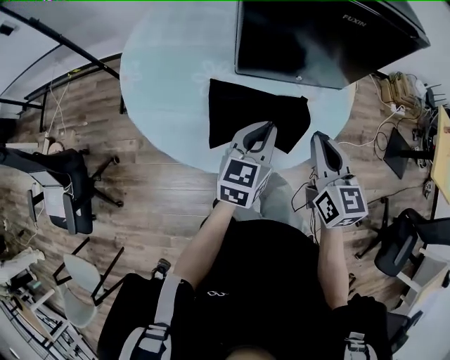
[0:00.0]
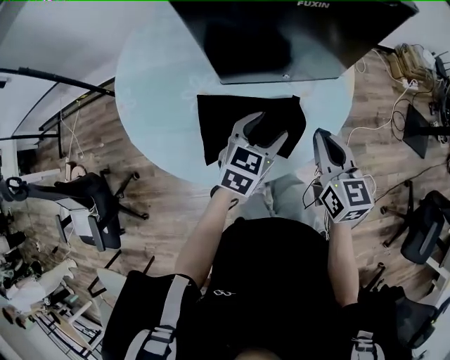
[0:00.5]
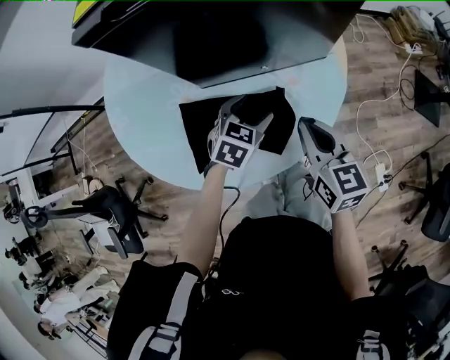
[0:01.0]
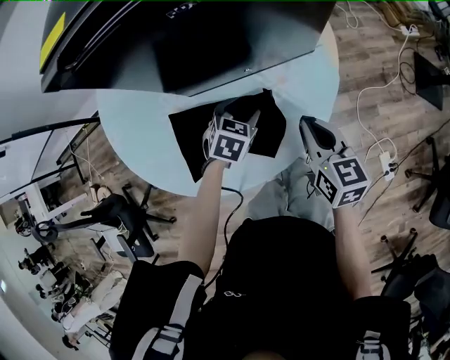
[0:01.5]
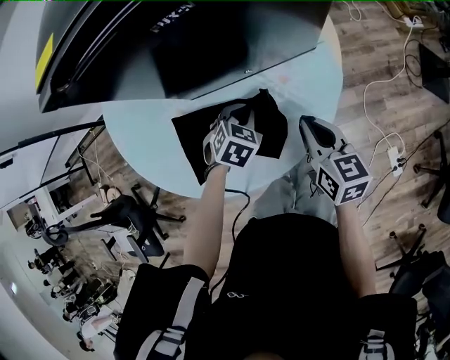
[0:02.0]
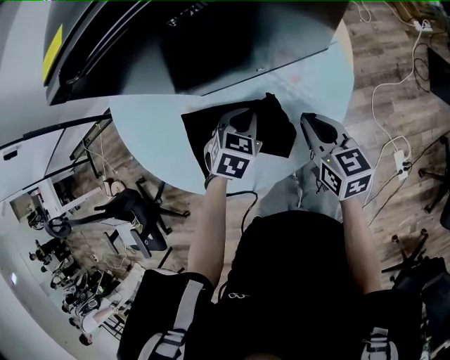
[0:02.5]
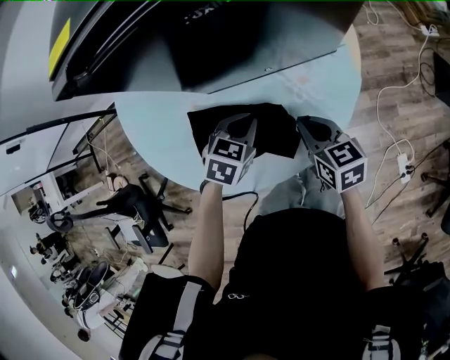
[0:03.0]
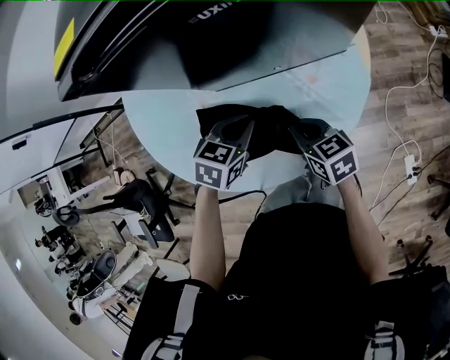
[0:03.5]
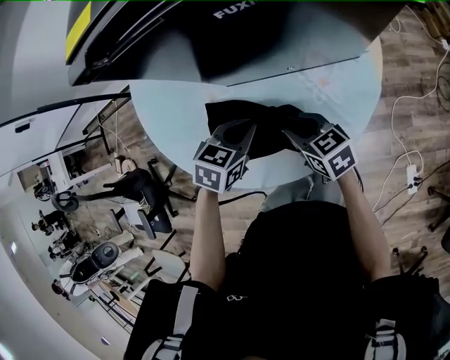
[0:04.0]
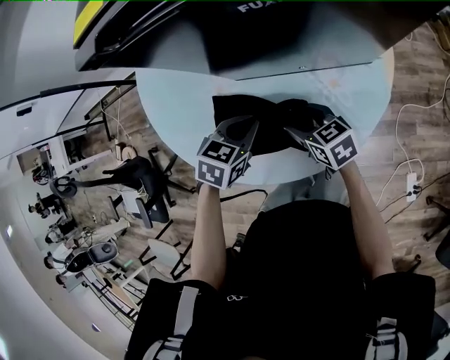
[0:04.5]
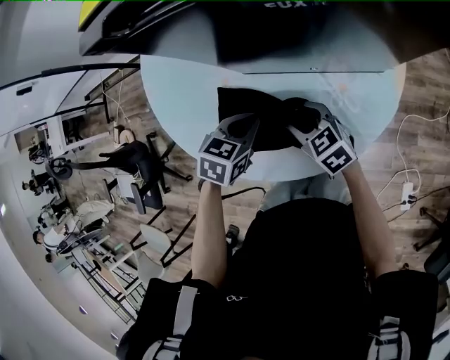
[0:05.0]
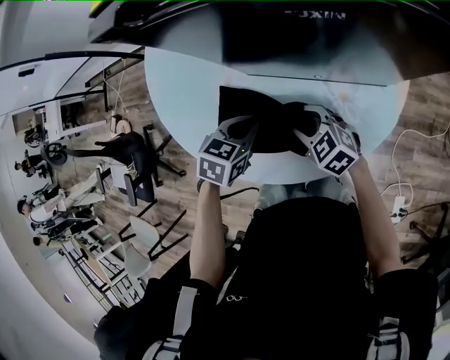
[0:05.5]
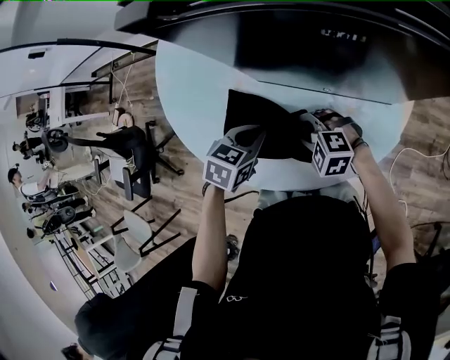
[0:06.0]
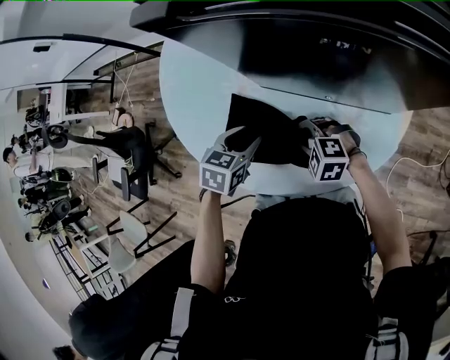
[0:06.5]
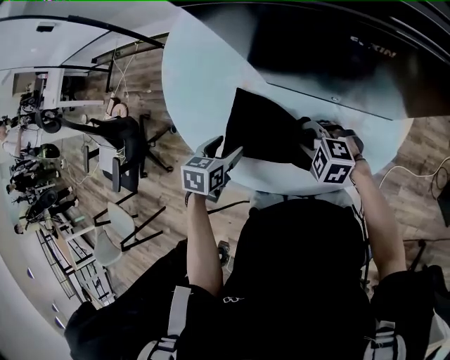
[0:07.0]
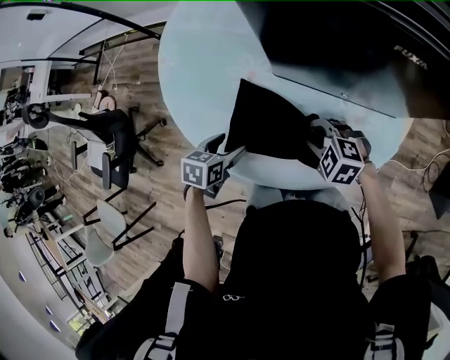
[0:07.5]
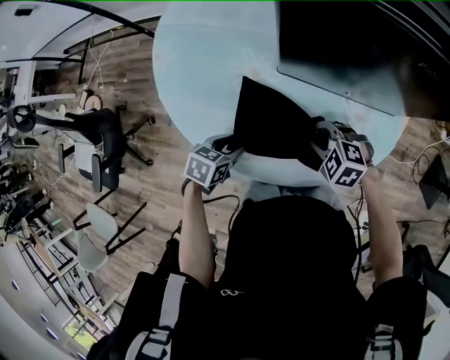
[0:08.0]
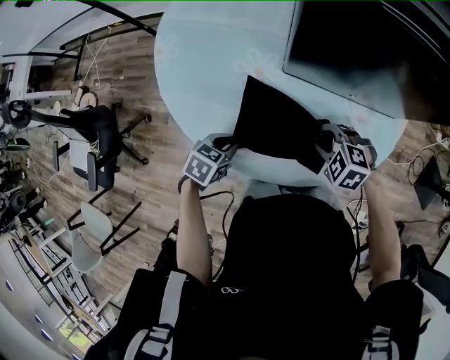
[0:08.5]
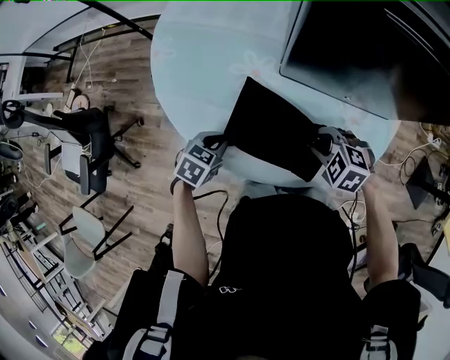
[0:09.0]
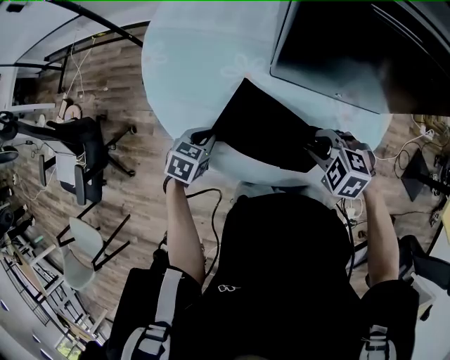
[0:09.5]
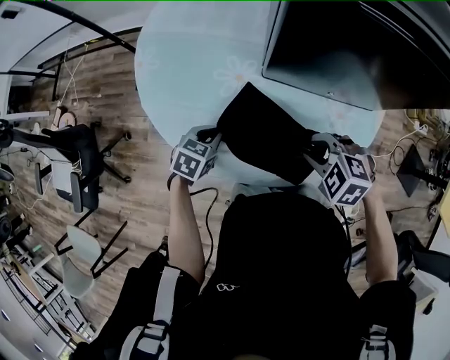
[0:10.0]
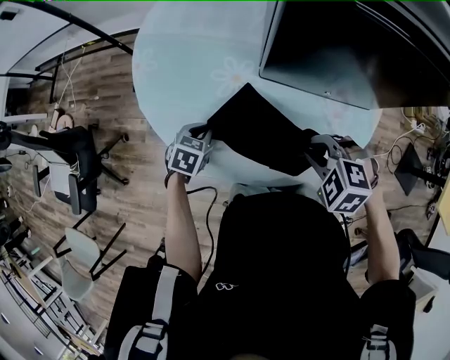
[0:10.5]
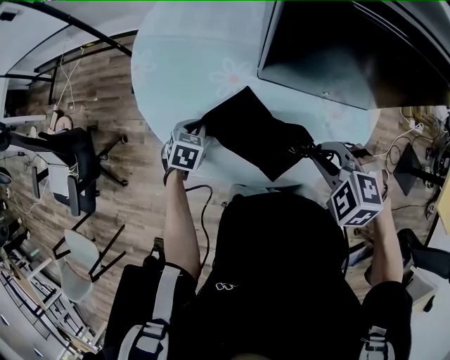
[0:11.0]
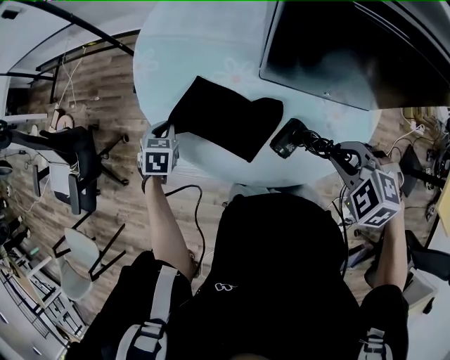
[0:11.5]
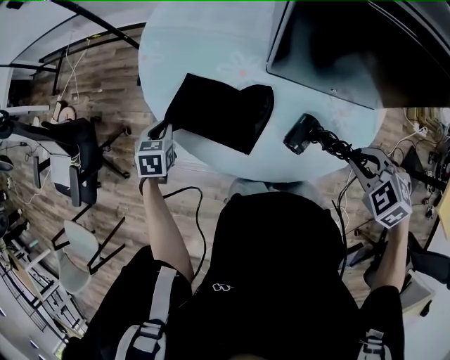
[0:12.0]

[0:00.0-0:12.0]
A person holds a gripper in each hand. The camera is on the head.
0:00.0 to 0:02.0: The left gripper goes about 20 cm downward and forward, angles its fingers downward, by some 40 degrees, and opens, then closes again. The right gripper travels downward, to the right and forward by some 20 cm, and rotates about 20 degrees.
0:02.0 to 0:04.0: The right gripper is displaced to the left and downward by some 15 cm, swivels about 30 degrees, and opens up. Meanwhile the left gripper goes some 10 cm to the left and upward, and rotates roughly 20 degrees.
0:04.0 to 0:06.0: The right gripper moves about 5 cm, rotates around the line of its fingers by approximately 70 degrees, counterclockwise from behind, and opens, then closes once more.
0:06.0 to 0:08.0: The left gripper heads to the left and downward, covering about 15 cm, and opens up.
0:08.0 to 0:10.0: The right gripper goes about 10 cm upward, while the left gripper goes approximately 5 cm forward, and closes its fingers.
0:10.0 to 0:12.0: The right gripper is displaced to the right and upward by about 10 cm. Meanwhile the left gripper shifts some 15 cm to the left, and changes its angle by roughly 30 degrees.

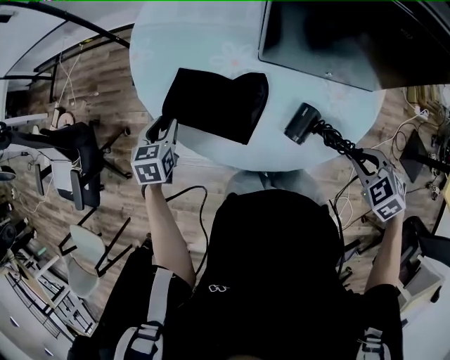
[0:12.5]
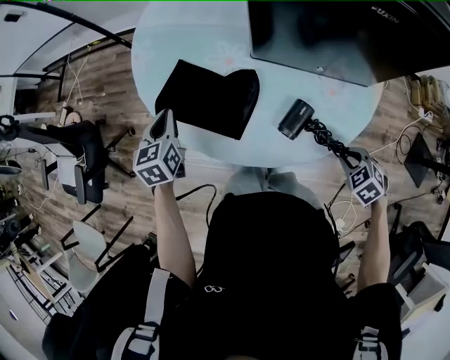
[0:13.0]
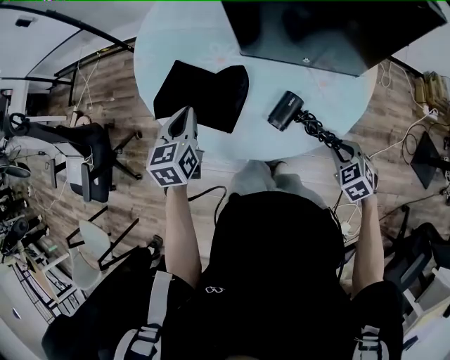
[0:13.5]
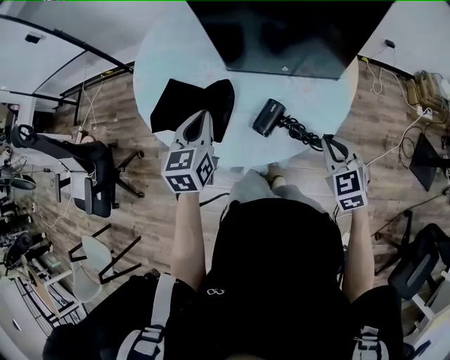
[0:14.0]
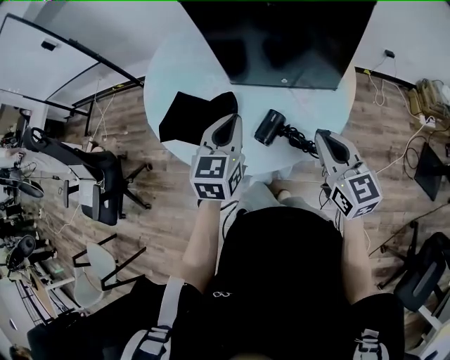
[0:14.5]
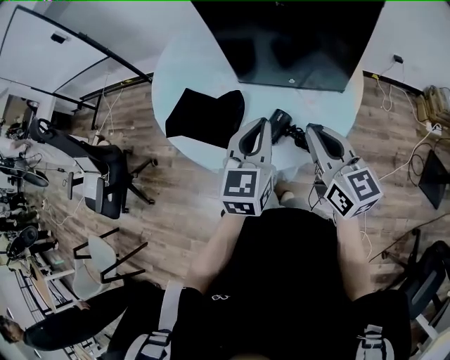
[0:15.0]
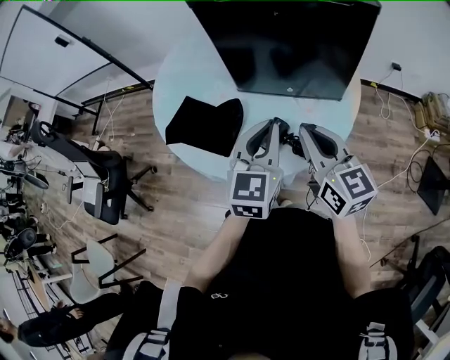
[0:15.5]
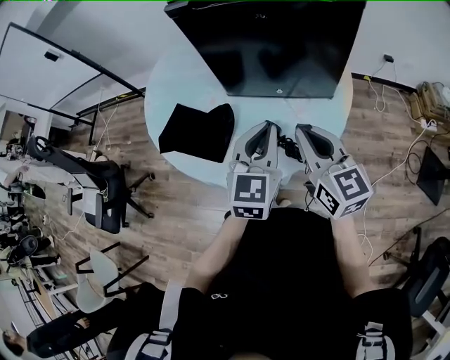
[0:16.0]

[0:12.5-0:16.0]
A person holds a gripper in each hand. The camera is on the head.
0:12.5 to 0:14.5: The left gripper is displaced to the right and upward by roughly 35 cm, swivels roughly 30 degrees, and closes up. The right gripper is displaced upward by approximately 10 cm, and tilts its fingers some 60 degrees upward.
0:14.5 to 0:16.0: The left gripper is displaced to the right by some 10 cm. Meanwhile the right gripper ends up roughly 5 cm from where it was.

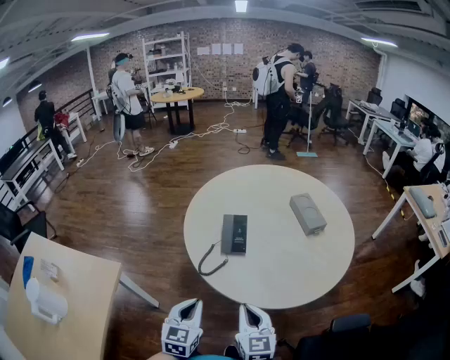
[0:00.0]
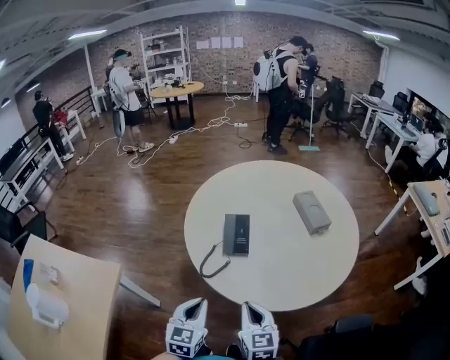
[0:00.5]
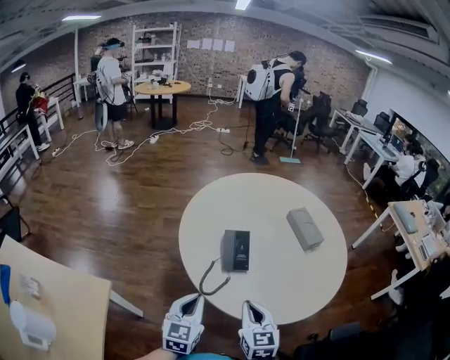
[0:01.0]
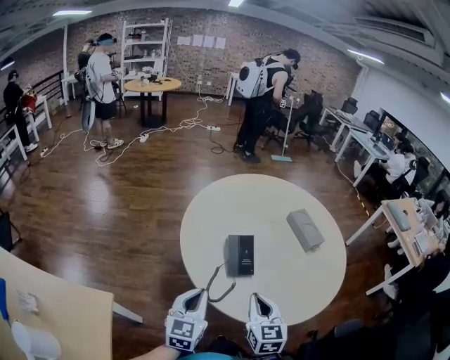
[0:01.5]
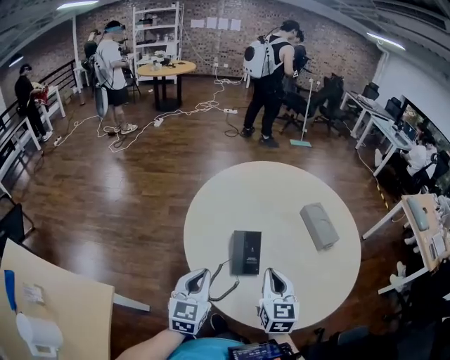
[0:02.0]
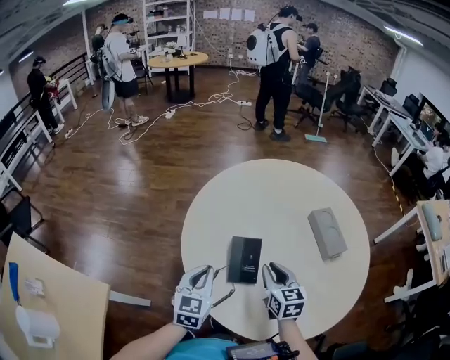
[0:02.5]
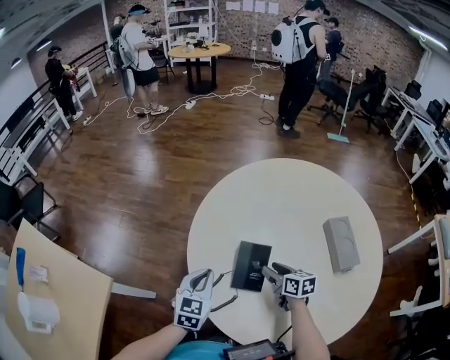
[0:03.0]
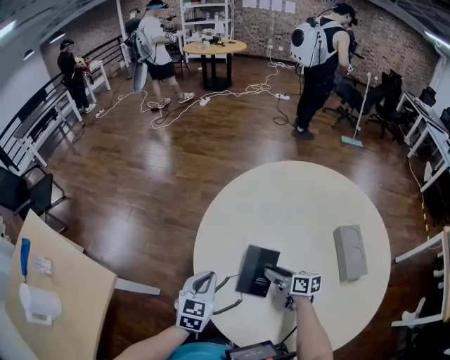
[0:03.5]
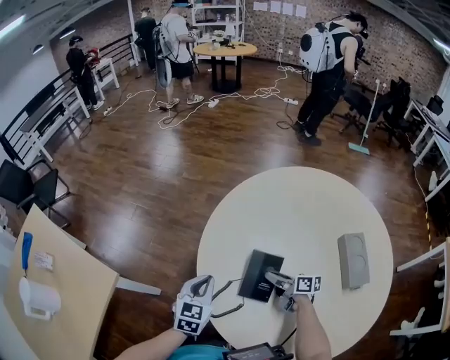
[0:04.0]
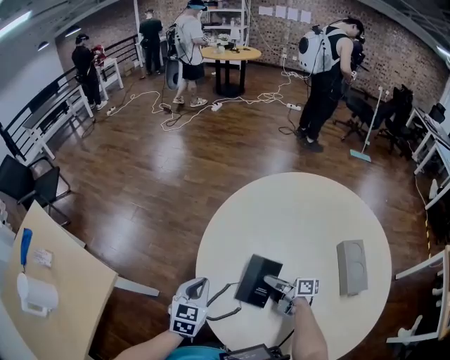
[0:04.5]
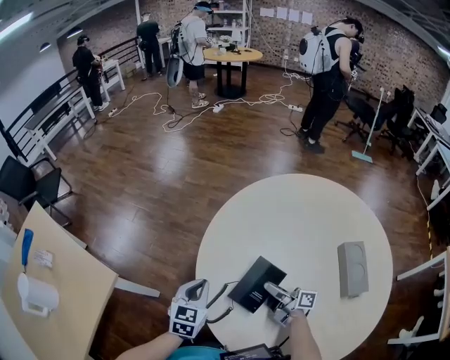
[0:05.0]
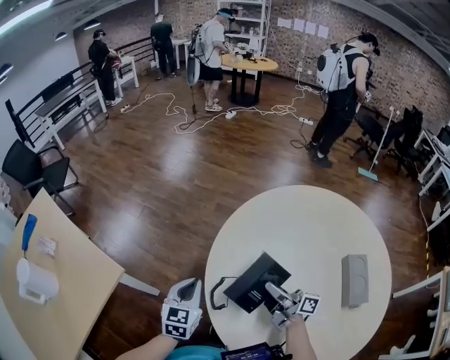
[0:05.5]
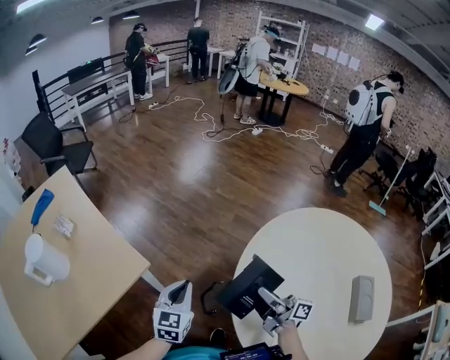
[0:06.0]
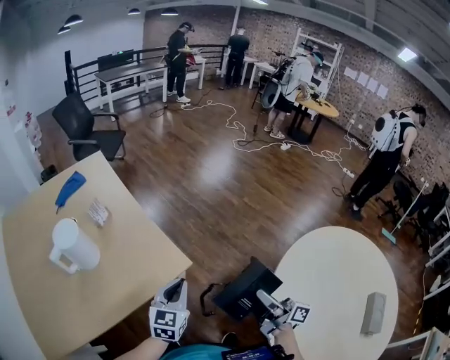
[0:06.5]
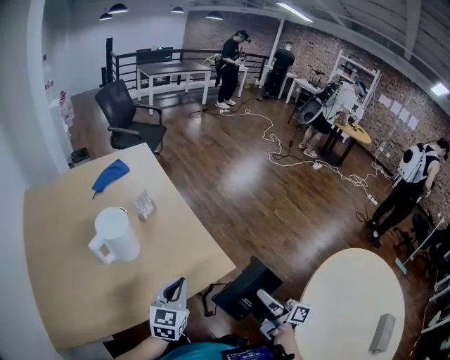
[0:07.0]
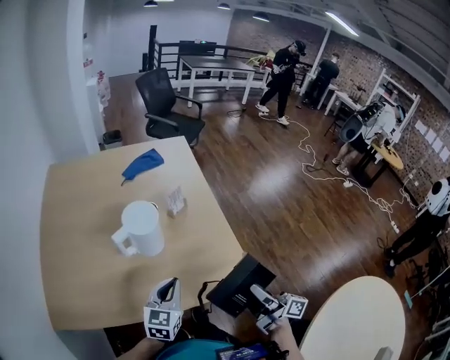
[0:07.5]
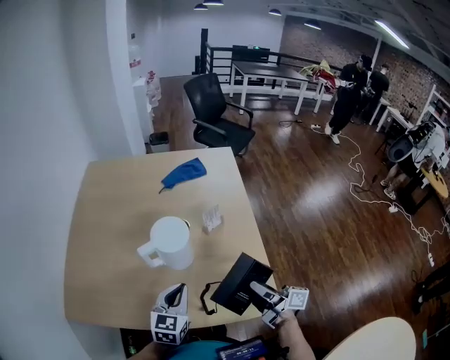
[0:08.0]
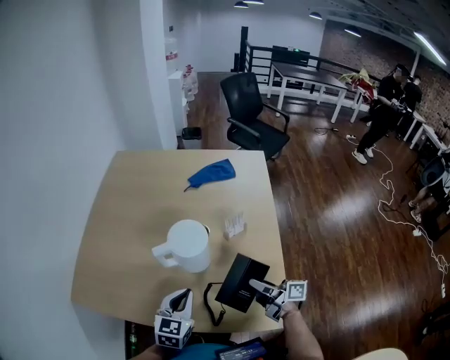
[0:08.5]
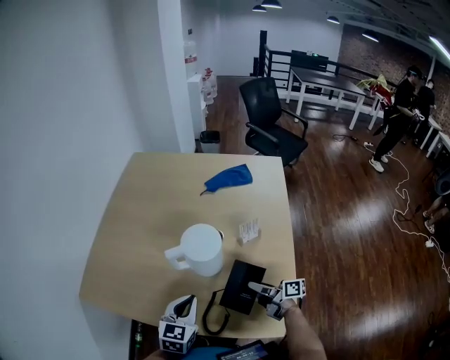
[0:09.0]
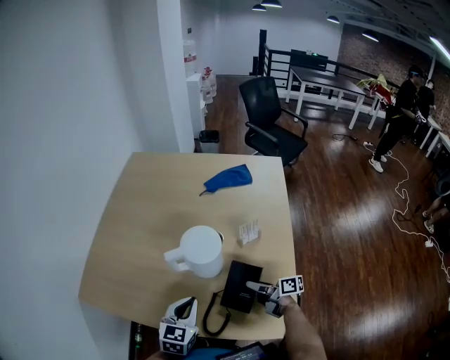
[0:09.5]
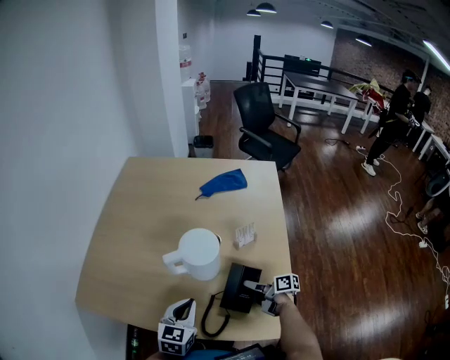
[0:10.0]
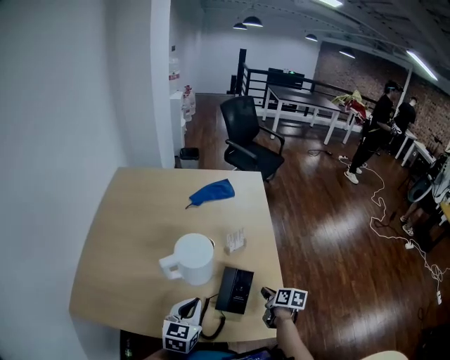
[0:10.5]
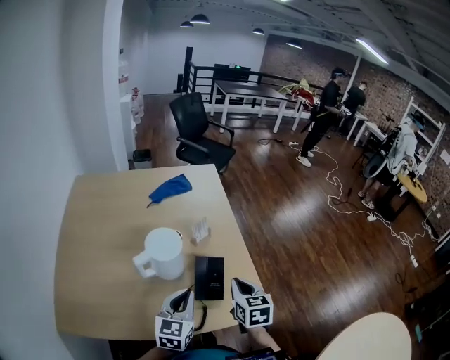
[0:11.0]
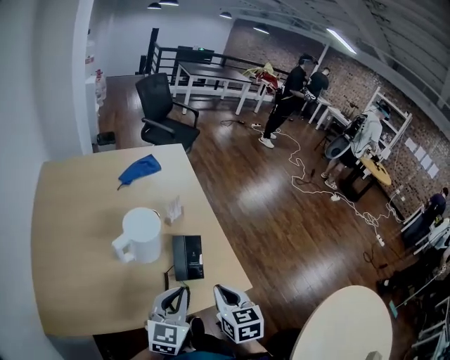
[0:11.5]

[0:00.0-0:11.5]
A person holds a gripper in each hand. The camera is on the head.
0:00.0 to 0:02.0: Both grippers travel together forward, approximately 25 cm.
0:02.0 to 0:04.0: The left gripper travels downward by roughly 10 cm, and changes its angle by some 20 degrees. The right gripper goes about 25 cm downward, changes its angle by roughly 80 degrees, and opens its fingers.
0:04.0 to 0:06.0: The right gripper moves to the left and upward, about 25 cm, and angles its fingers upward, by roughly 30 degrees. The left gripper goes roughly 20 cm to the left, and swivels some 30 degrees.
0:06.0 to 0:07.5: The pair of grippers is taken some 50 cm. The right gripper changes its angle by about 30 degrees. The left gripper swivels approximately 40 degrees.
0:07.5 to 0:09.5: The right gripper changes place by about 30 cm, and swivels roughly 50 degrees. Meanwhile the left gripper moves about 10 cm, and changes its angle by about 30 degrees.
0:09.5 to 0:11.5: The left gripper moves approximately 15 cm, and rotates approximately 30 degrees, while the right gripper moves upward, about 20 cm, changes its angle by approximately 80 degrees, and closes.
